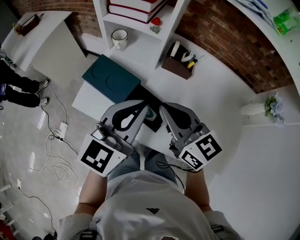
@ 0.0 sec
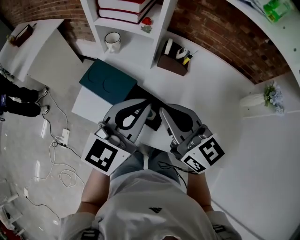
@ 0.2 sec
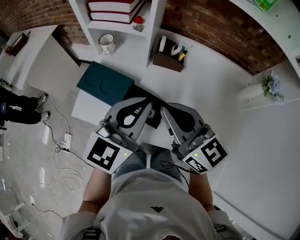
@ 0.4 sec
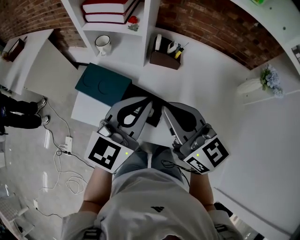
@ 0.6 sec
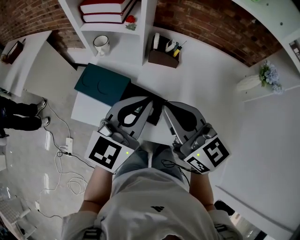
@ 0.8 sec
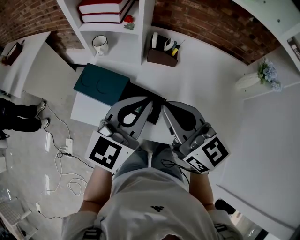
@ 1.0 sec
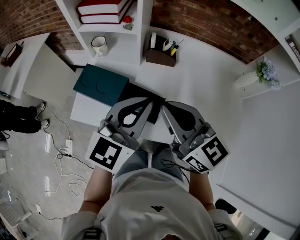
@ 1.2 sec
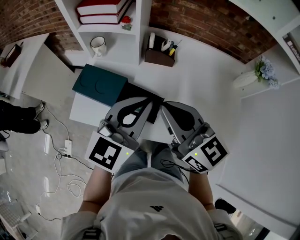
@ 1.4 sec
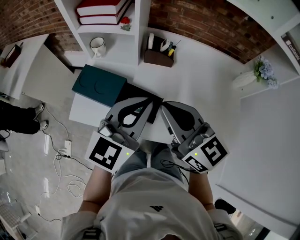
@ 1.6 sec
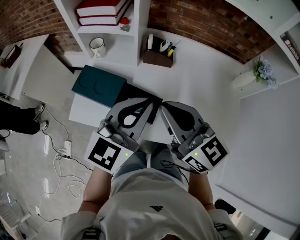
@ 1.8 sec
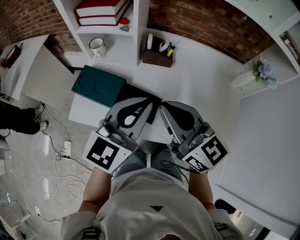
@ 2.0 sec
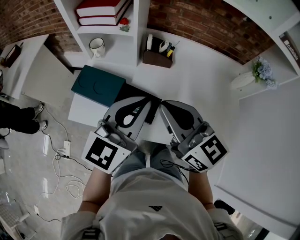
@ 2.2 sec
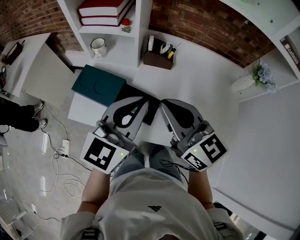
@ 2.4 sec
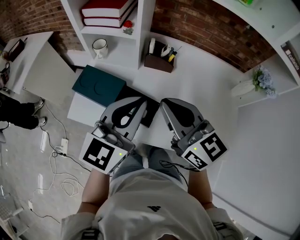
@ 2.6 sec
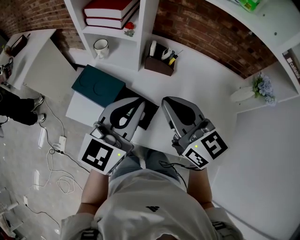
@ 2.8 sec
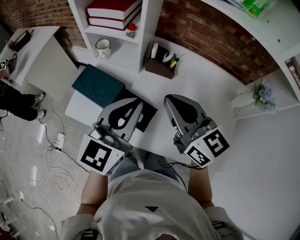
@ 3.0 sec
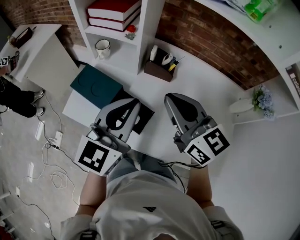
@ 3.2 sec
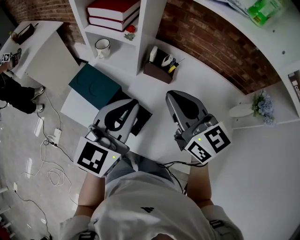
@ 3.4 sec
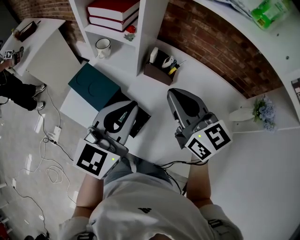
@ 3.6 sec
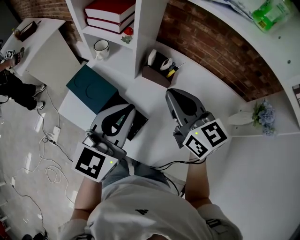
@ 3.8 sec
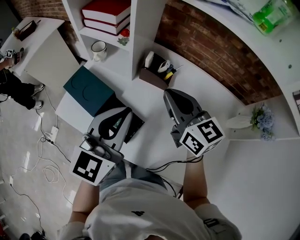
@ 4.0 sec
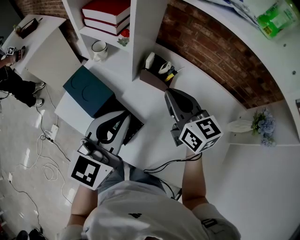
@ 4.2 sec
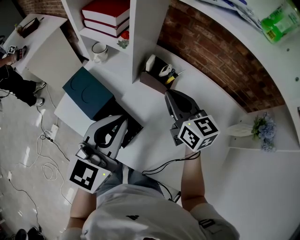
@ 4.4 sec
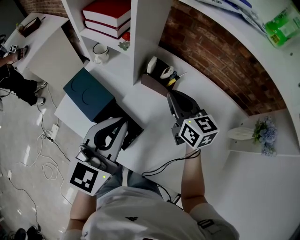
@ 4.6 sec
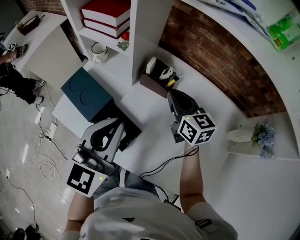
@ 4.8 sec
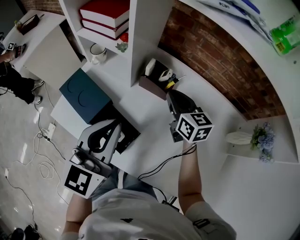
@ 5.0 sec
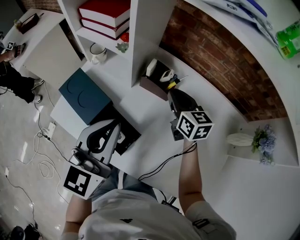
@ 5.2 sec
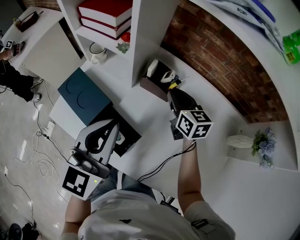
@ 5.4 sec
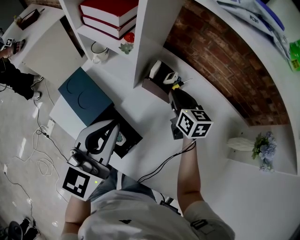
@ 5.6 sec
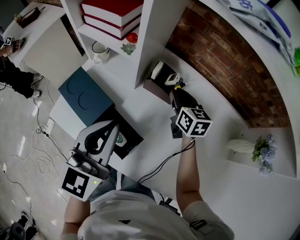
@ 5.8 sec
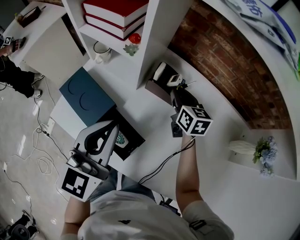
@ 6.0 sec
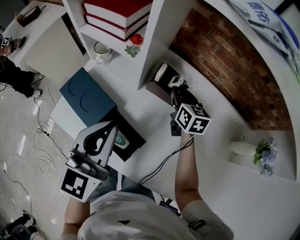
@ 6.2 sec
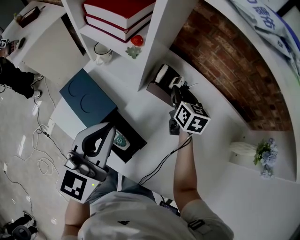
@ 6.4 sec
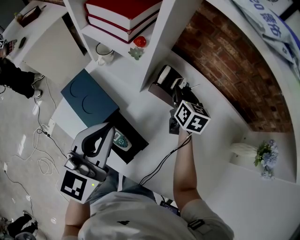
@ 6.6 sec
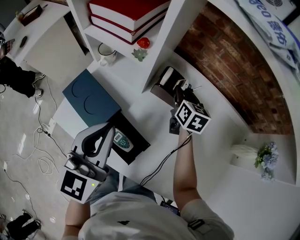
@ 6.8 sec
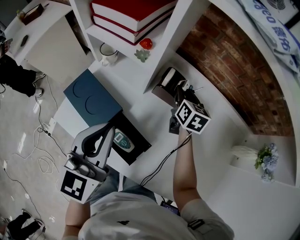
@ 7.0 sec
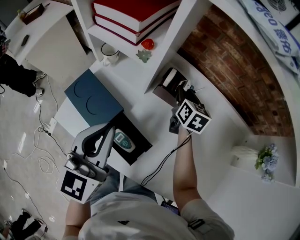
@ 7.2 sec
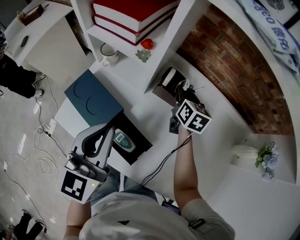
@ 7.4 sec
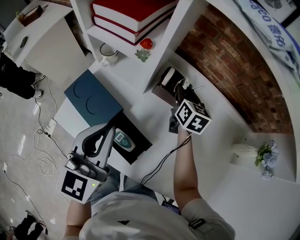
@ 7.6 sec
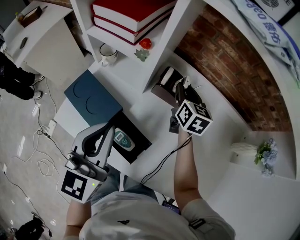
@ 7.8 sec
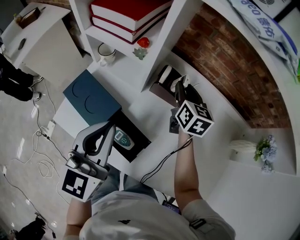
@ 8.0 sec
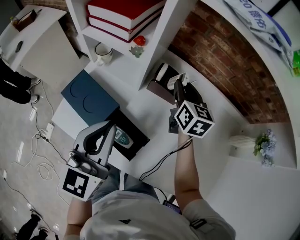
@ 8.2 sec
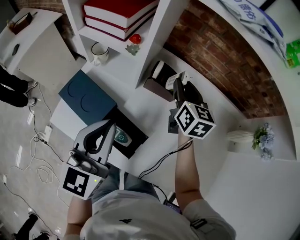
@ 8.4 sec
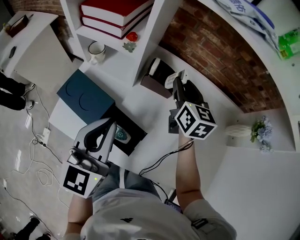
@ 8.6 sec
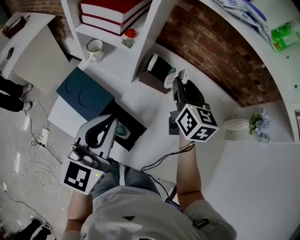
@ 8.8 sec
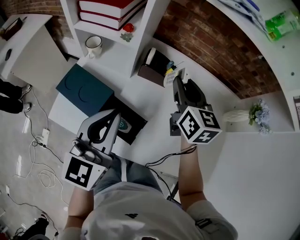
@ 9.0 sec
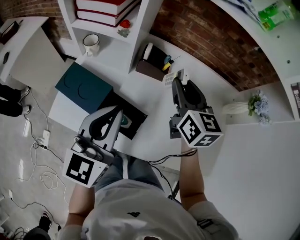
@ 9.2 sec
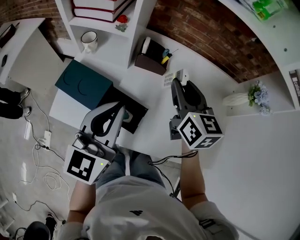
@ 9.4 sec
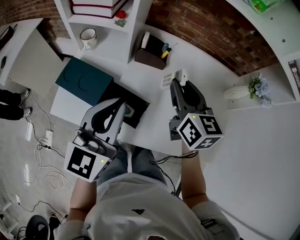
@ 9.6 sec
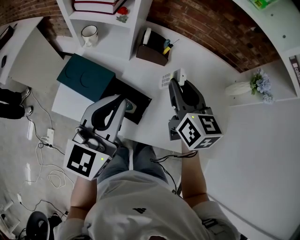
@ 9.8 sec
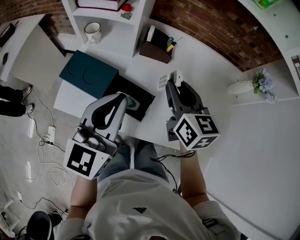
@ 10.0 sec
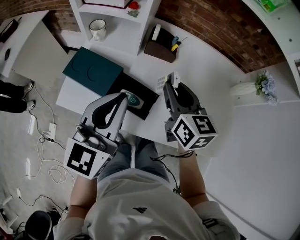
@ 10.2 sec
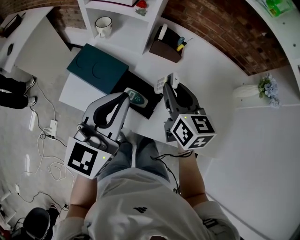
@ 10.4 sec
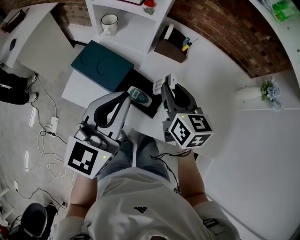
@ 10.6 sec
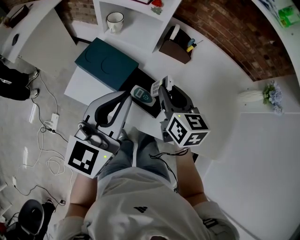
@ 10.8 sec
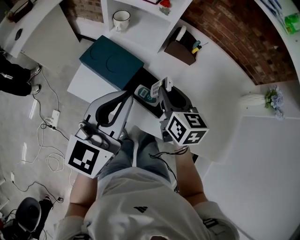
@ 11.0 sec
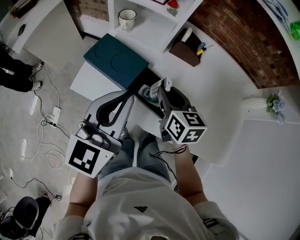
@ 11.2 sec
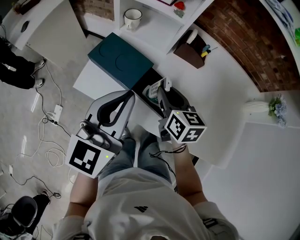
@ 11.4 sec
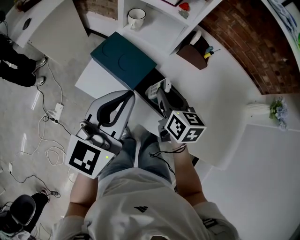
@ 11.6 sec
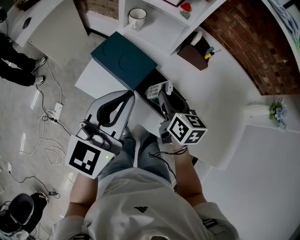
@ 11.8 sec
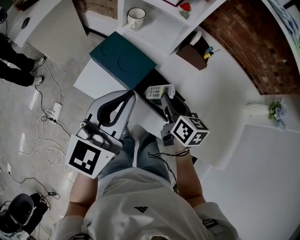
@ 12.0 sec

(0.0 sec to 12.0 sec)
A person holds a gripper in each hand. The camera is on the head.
0.0 sec - 1.6 sec: The left gripper is displaced to the right by about 5 cm, while the right gripper shifts by about 5 cm.
1.6 sec - 3.0 sec: The right gripper shifts roughly 5 cm forward.
3.0 sec - 4.4 sec: The right gripper shifts approximately 20 cm forward, downward and to the right; the left gripper ends up about 5 cm from where it was.
4.4 sec - 6.0 sec: The left gripper moves roughly 5 cm. Meanwhile the right gripper moves downward and forward, approximately 15 cm.
6.0 sec - 7.6 sec: The grippers move only a little.
7.6 sec - 9.0 sec: The right gripper travels upward and backward by roughly 20 cm; the left gripper moves roughly 5 cm.
9.0 sec - 10.4 sec: The left gripper travels backward by roughly 5 cm. The right gripper shifts approximately 15 cm backward and to the left.
10.4 sec - 12.0 sec: The left gripper heads to the left, covering about 5 cm. Meanwhile the right gripper is displaced downward and to the left by roughly 15 cm.

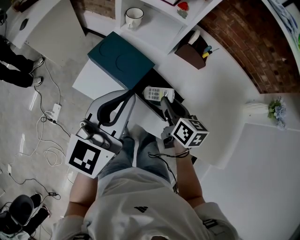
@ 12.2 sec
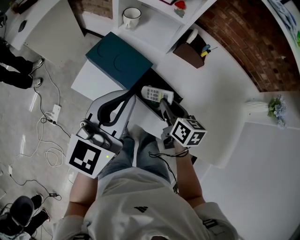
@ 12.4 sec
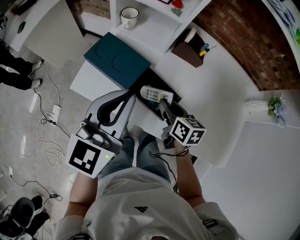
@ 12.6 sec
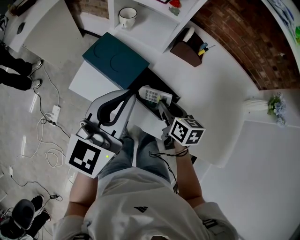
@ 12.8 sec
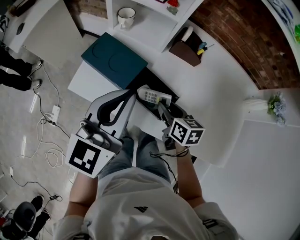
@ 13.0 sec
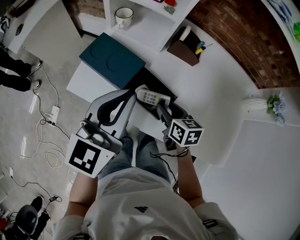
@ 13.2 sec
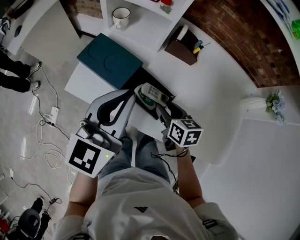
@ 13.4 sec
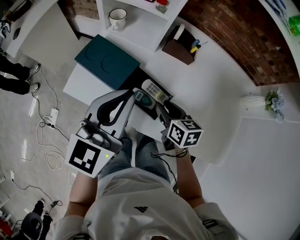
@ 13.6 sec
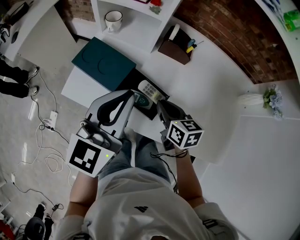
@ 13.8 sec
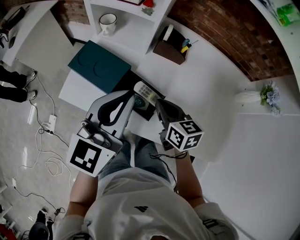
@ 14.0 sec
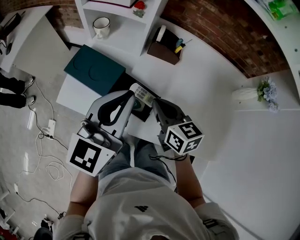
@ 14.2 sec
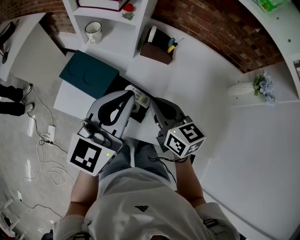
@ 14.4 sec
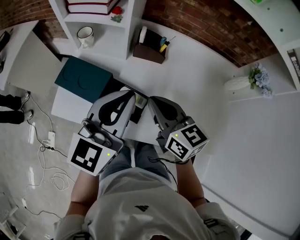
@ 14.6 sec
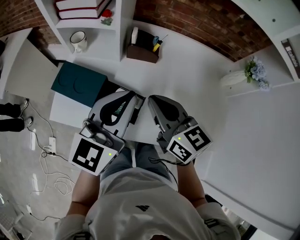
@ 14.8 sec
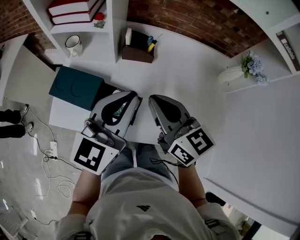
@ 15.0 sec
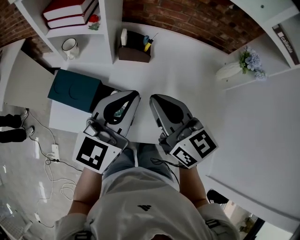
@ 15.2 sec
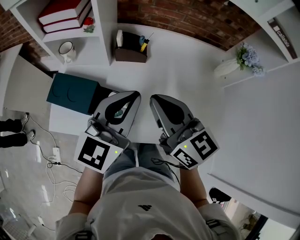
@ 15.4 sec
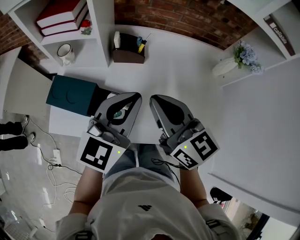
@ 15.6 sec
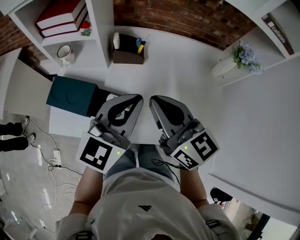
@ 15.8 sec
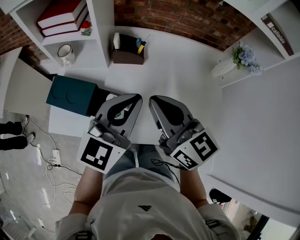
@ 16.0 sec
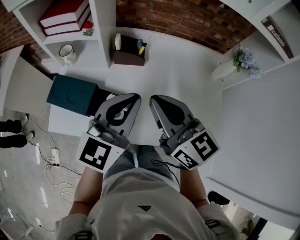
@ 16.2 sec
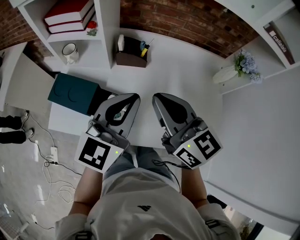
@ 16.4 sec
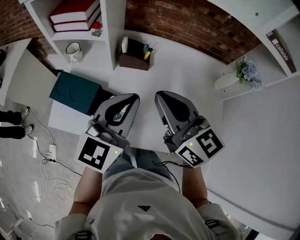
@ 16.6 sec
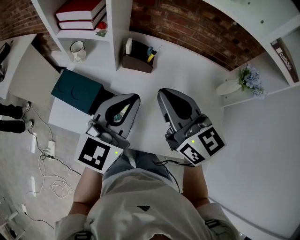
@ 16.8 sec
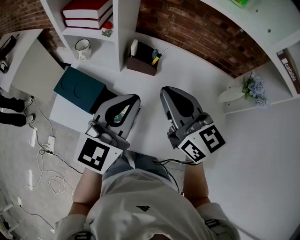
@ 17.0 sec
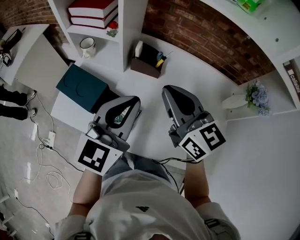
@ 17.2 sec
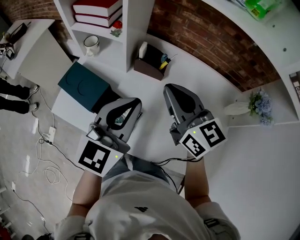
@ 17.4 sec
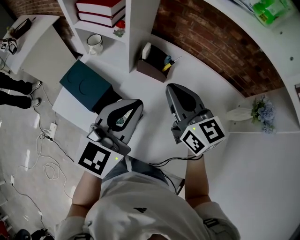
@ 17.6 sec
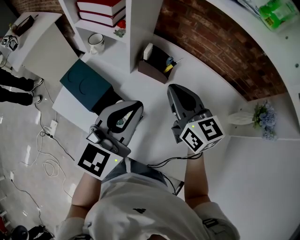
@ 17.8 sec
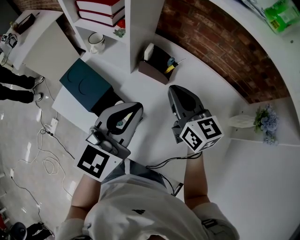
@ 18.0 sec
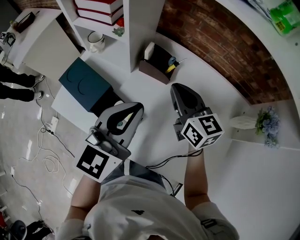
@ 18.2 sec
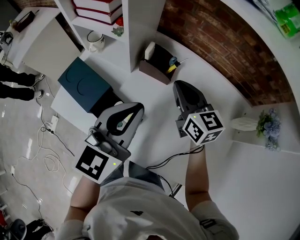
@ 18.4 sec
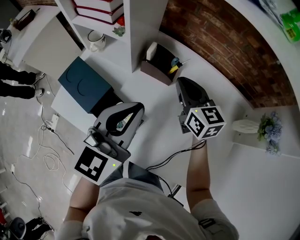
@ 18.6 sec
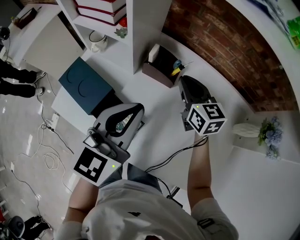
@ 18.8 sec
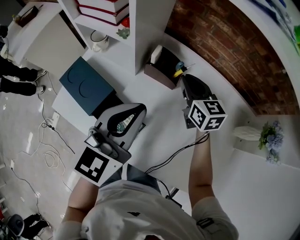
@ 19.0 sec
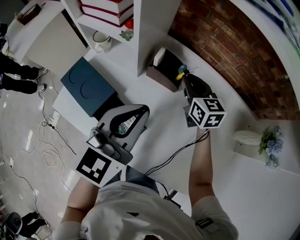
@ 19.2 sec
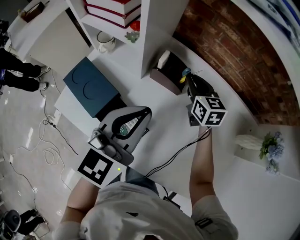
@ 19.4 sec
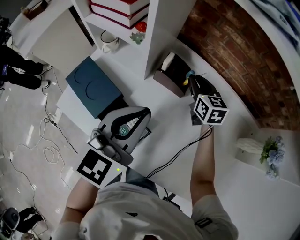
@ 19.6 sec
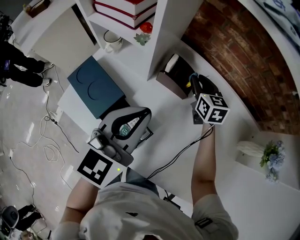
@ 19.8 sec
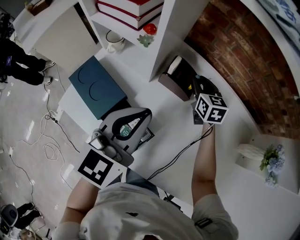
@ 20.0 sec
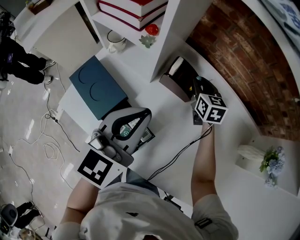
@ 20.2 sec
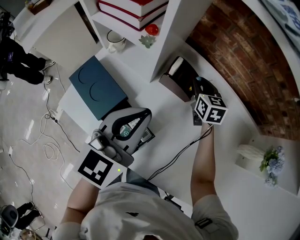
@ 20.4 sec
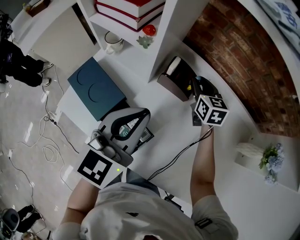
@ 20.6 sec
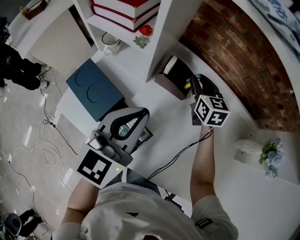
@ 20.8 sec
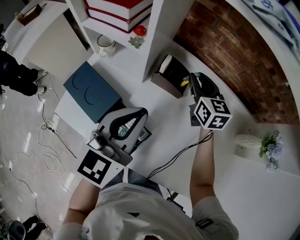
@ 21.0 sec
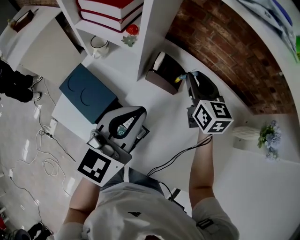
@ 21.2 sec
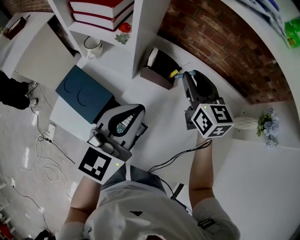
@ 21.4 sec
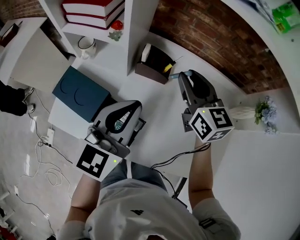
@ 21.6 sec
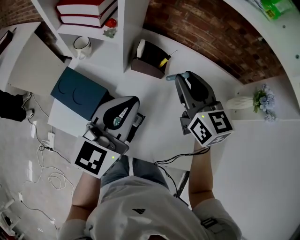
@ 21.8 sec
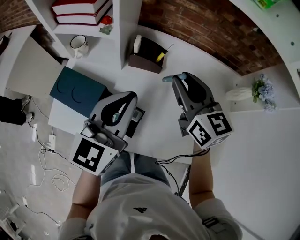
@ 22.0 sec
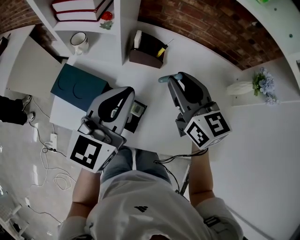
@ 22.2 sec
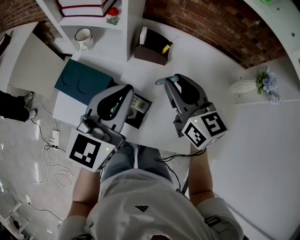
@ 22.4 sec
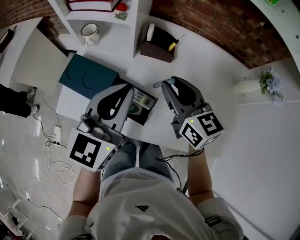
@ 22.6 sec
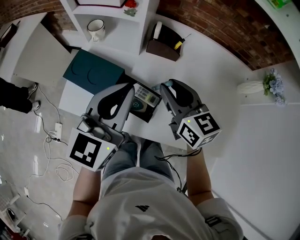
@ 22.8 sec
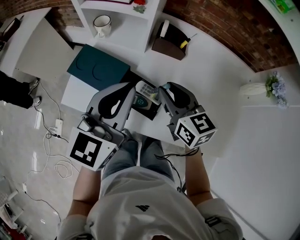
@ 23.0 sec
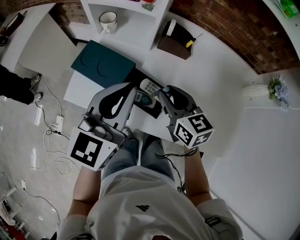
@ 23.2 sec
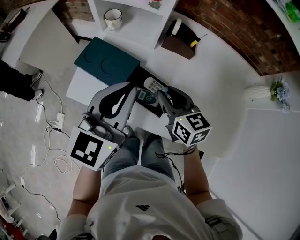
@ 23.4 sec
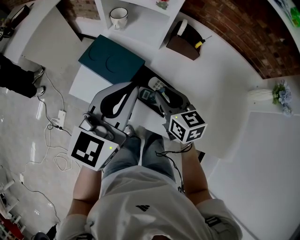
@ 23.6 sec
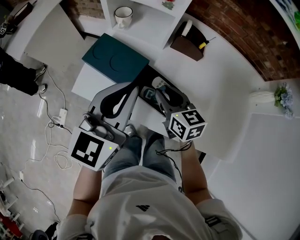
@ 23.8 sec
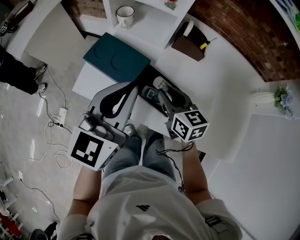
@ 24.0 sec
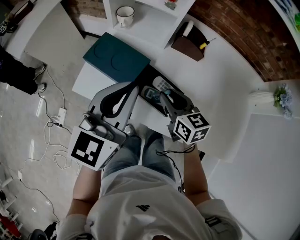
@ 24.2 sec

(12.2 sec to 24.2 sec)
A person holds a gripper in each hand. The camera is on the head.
12.2 sec - 13.8 sec: The left gripper heads to the right, covering approximately 5 cm.
13.8 sec - 15.2 sec: The right gripper travels upward by approximately 20 cm, and changes its angle by about 30 degrees. The left gripper heads to the right, covering roughly 10 cm.
15.2 sec - 16.6 sec: The grippers make only small movements.
16.6 sec - 18.2 sec: The left gripper is displaced forward by some 5 cm; the right gripper is displaced forward and downward by about 20 cm.
18.2 sec - 19.8 sec: The left gripper moves about 5 cm; the right gripper travels forward and downward by about 20 cm, and opens its fingers.
19.8 sec - 21.2 sec: The right gripper goes approximately 10 cm upward and backward.
21.2 sec - 22.6 sec: The right gripper moves backward, some 20 cm; the left gripper travels backward by about 5 cm.
22.6 sec - 24.2 sec: The left gripper travels to the left by roughly 10 cm, while the right gripper goes about 15 cm downward and to the left.
